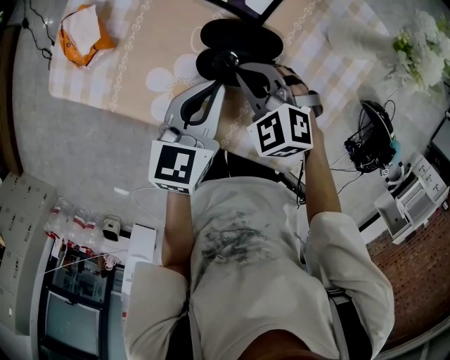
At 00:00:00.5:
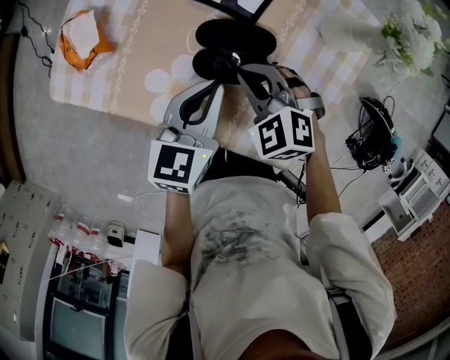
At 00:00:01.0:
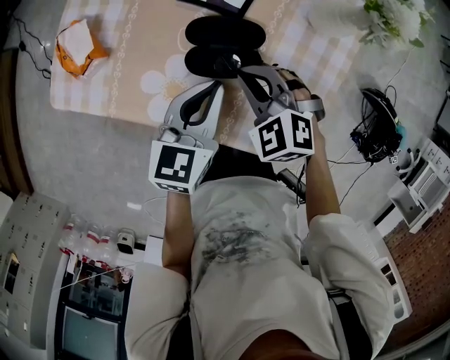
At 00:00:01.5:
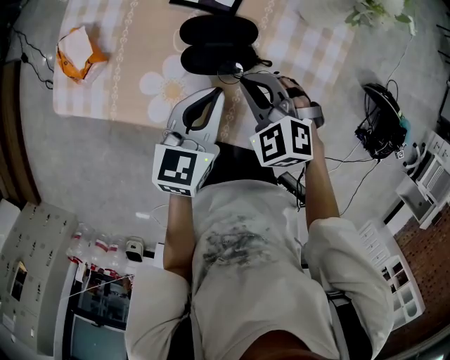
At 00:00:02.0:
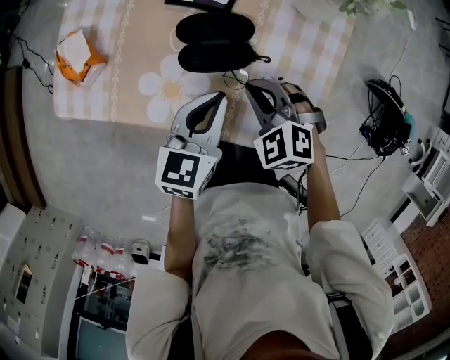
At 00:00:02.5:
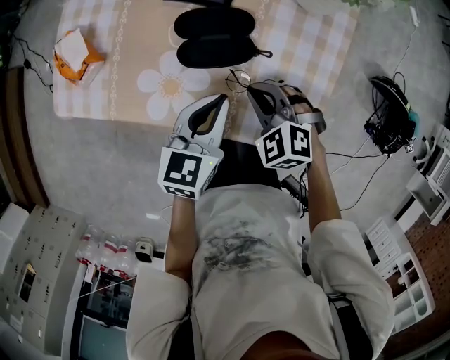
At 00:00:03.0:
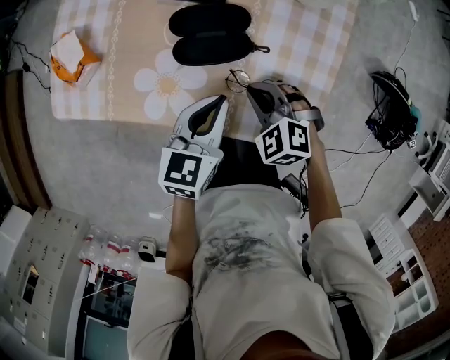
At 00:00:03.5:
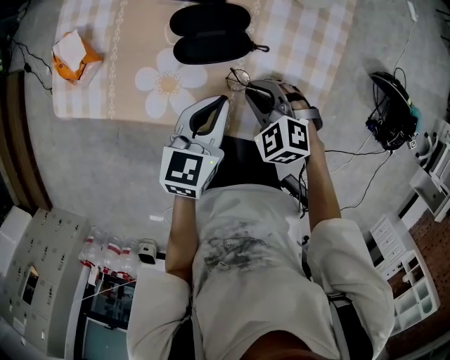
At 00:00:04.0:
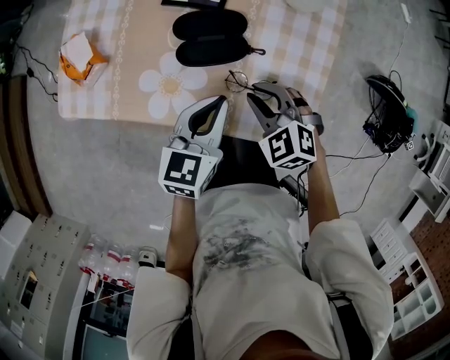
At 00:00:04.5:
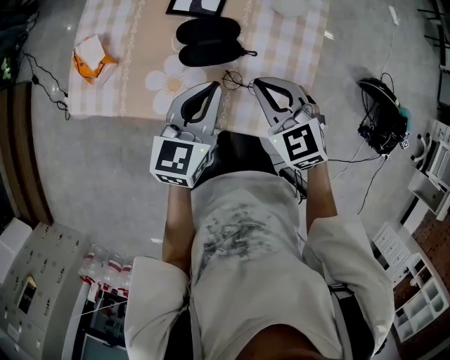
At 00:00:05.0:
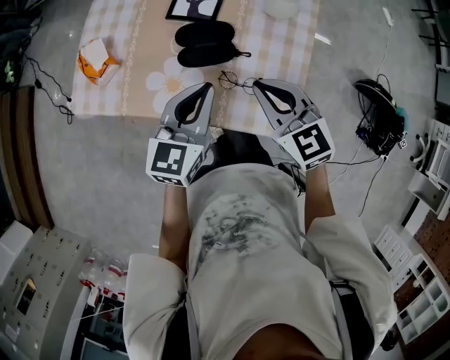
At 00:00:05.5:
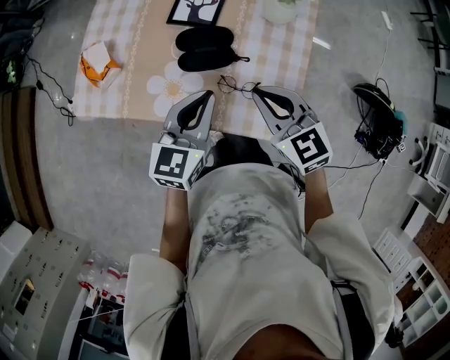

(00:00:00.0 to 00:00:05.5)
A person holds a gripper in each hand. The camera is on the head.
00:00:00.0 - 00:00:02.0: The left gripper goes approximately 5 cm backward, while the right gripper is displaced backward and to the right by about 10 cm.
00:00:02.0 - 00:00:03.5: The right gripper changes place by some 5 cm.
00:00:03.5 - 00:00:05.5: The right gripper shifts roughly 20 cm upward, and swivels some 40 degrees, while the left gripper travels upward by about 10 cm.

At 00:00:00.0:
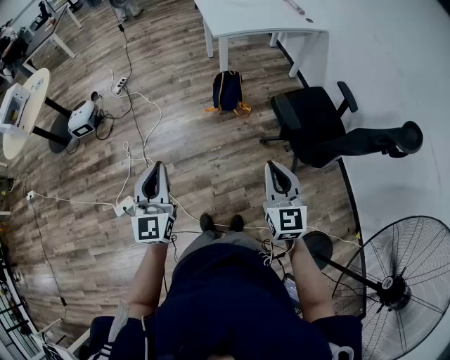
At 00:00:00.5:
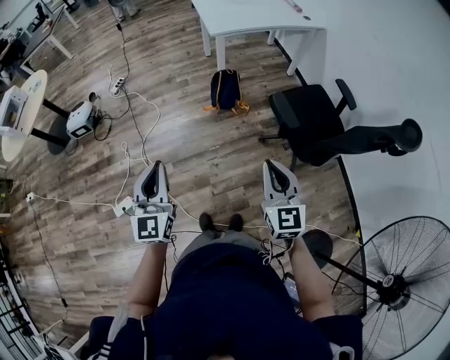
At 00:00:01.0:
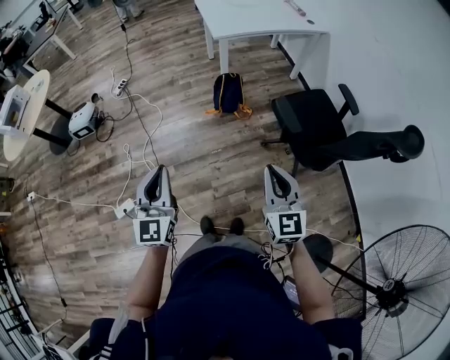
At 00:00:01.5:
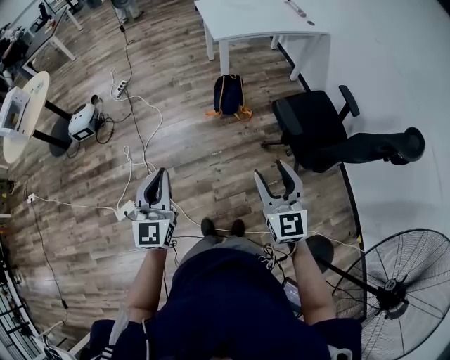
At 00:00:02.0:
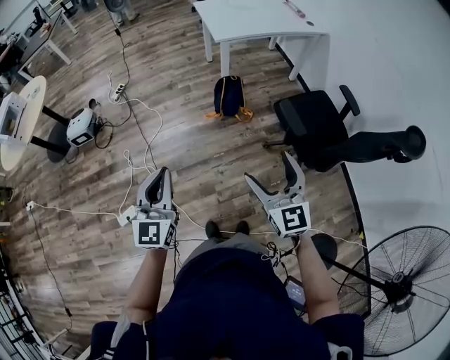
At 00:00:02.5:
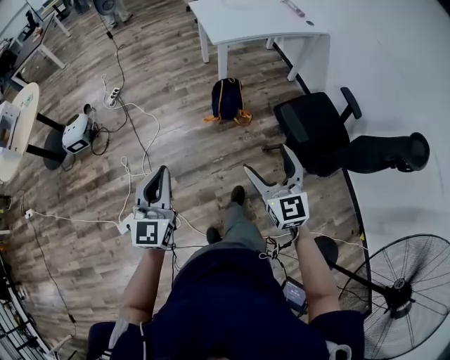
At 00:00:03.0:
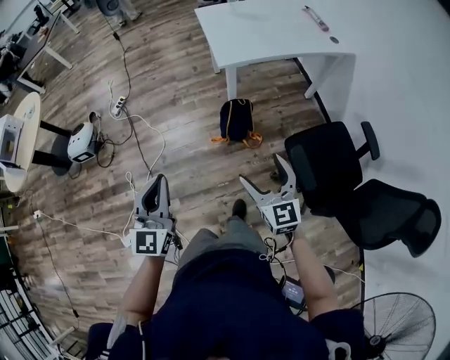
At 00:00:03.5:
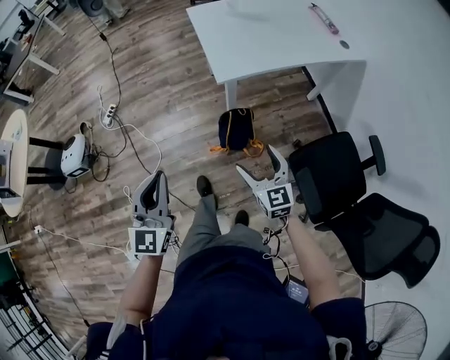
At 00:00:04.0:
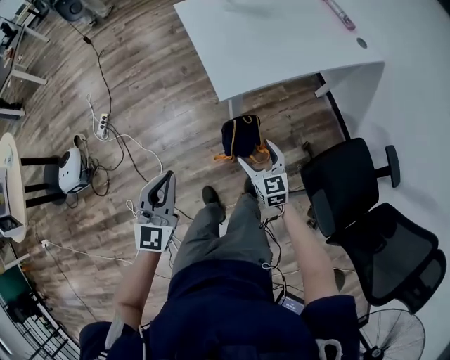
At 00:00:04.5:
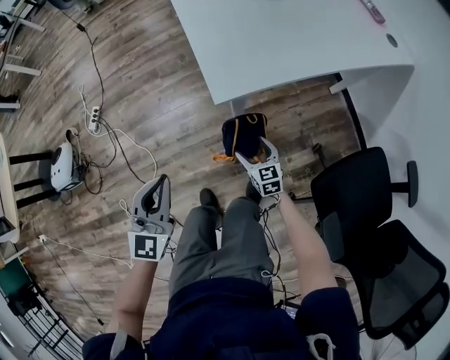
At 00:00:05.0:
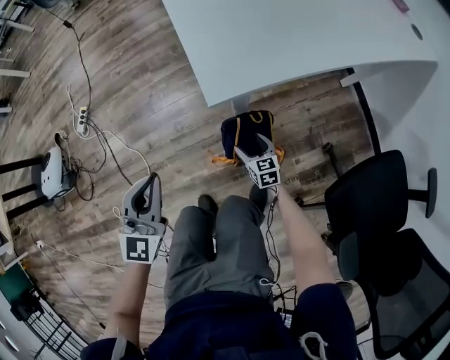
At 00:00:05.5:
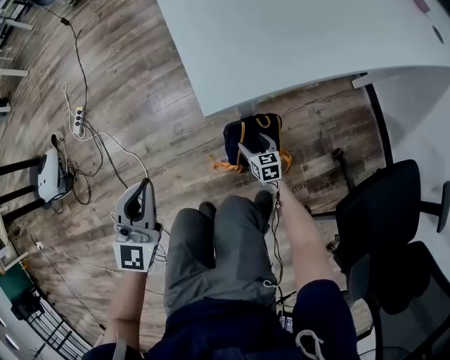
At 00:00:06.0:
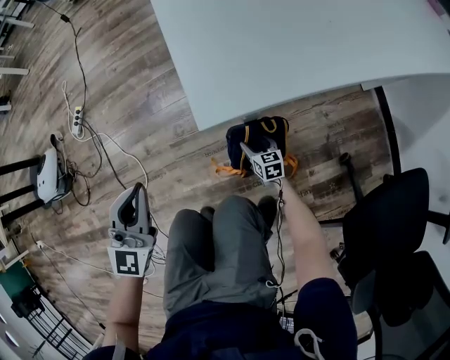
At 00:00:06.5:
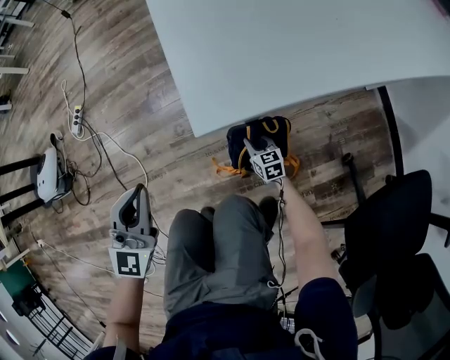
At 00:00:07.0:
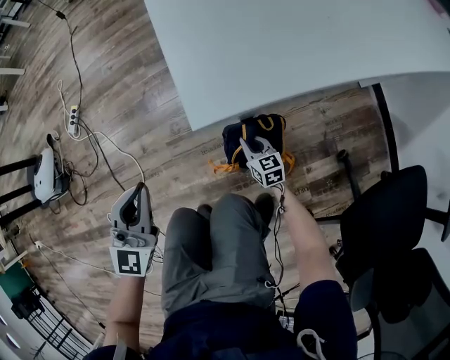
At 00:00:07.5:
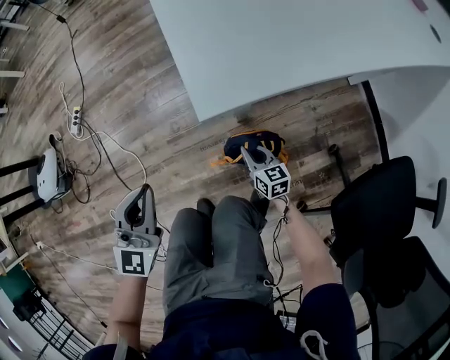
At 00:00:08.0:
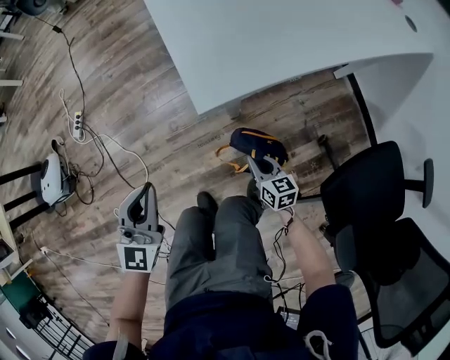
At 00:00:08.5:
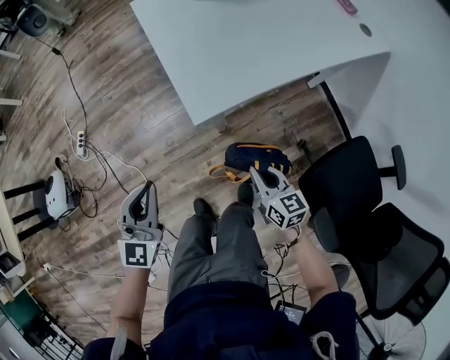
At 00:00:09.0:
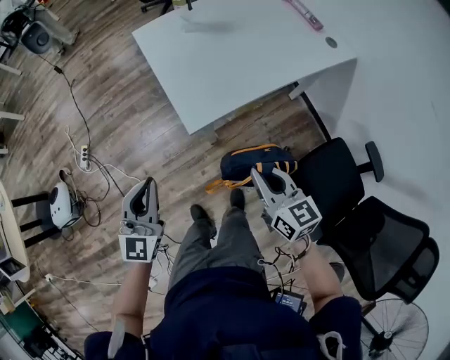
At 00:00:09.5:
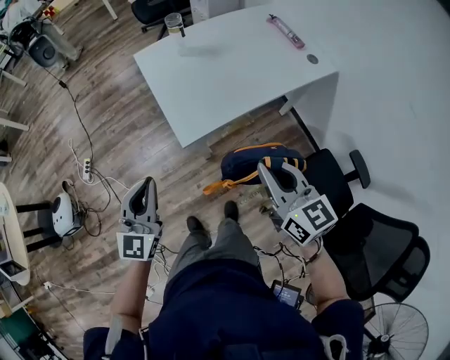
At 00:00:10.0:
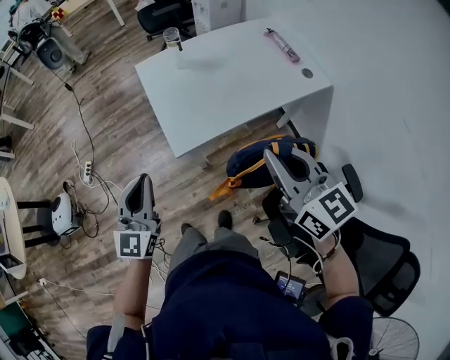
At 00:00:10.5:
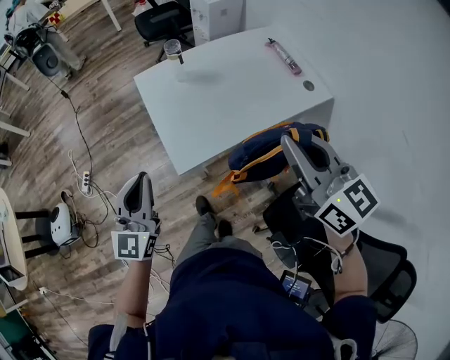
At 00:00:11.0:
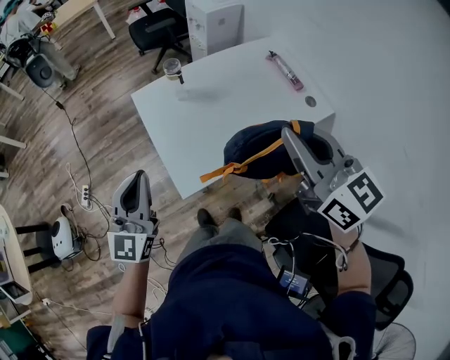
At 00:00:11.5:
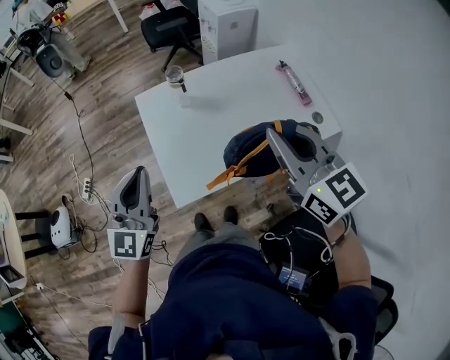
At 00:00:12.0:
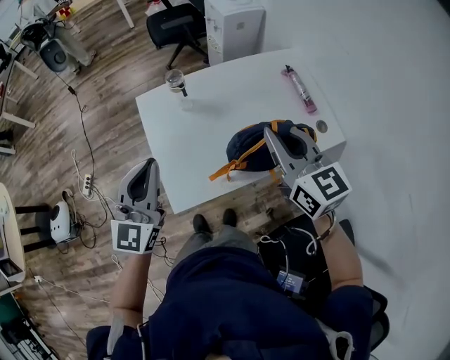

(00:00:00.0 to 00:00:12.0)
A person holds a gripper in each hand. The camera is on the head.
00:00:00.0 - 00:00:02.0: The right gripper goes roughly 5 cm to the left, and opens its fingers.
00:00:02.0 - 00:00:04.0: The two grippers travel together, forward, some 60 cm. The right gripper shifts some 35 cm downward, and swivels about 20 degrees.
00:00:04.0 - 00:00:06.0: The right gripper heads downward, covering approximately 50 cm, and rotates some 20 degrees. The left gripper travels downward and forward by approximately 35 cm.
00:00:06.0 - 00:00:08.0: The left gripper shifts some 10 cm upward, while the right gripper heads upward and backward, covering about 25 cm, and closes its fingers.
00:00:08.0 - 00:00:10.0: The left gripper goes roughly 35 cm upward, while the right gripper is displaced upward by roughly 70 cm, and swivels roughly 30 degrees.
00:00:10.0 - 00:00:12.0: The two grippers go approximately 25 cm forward.

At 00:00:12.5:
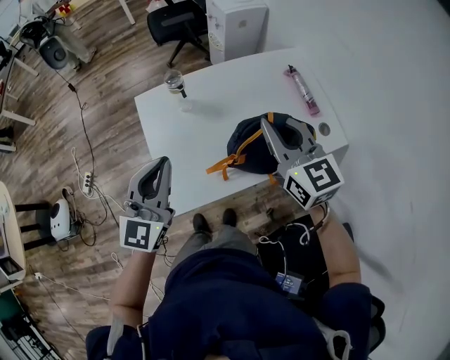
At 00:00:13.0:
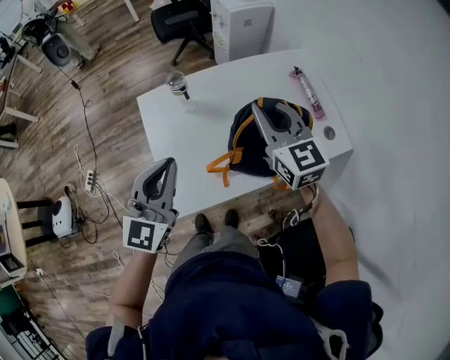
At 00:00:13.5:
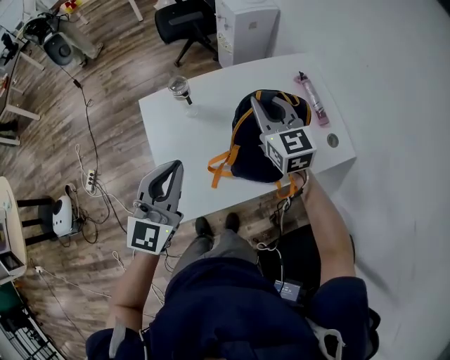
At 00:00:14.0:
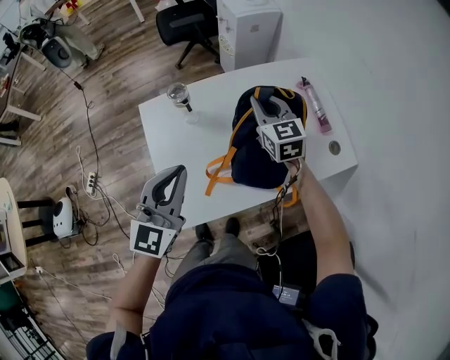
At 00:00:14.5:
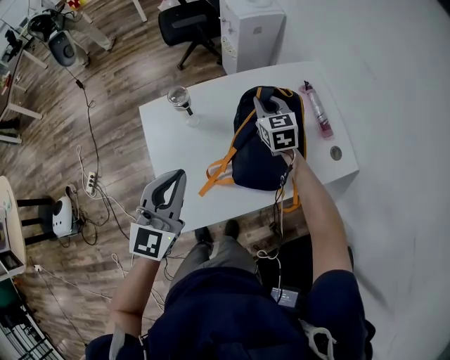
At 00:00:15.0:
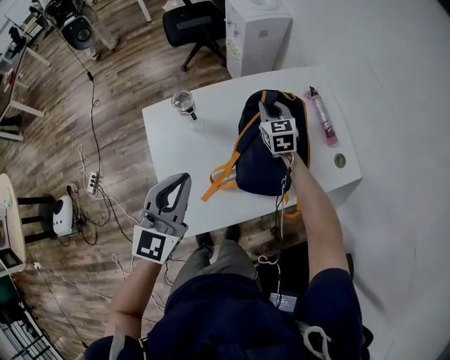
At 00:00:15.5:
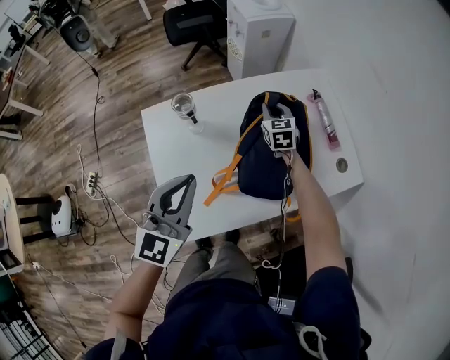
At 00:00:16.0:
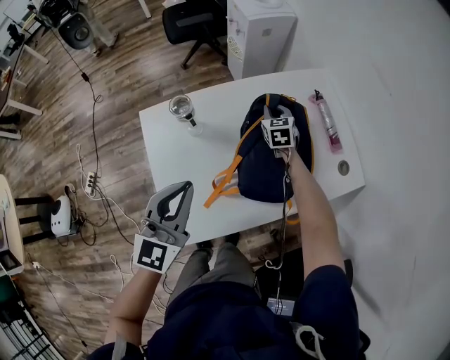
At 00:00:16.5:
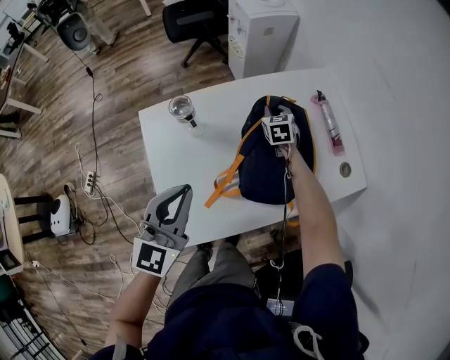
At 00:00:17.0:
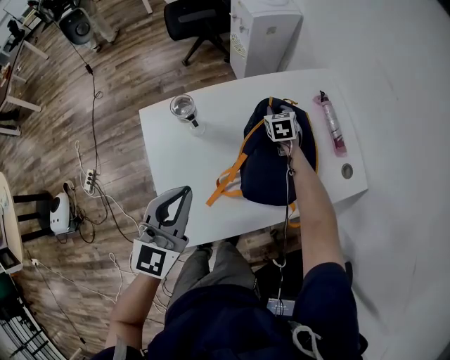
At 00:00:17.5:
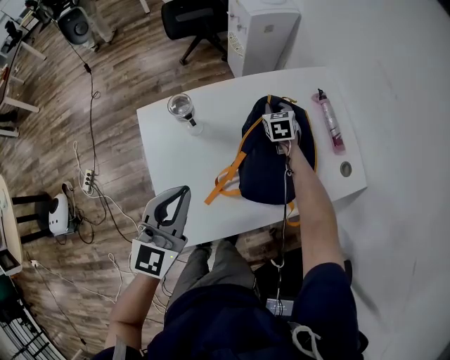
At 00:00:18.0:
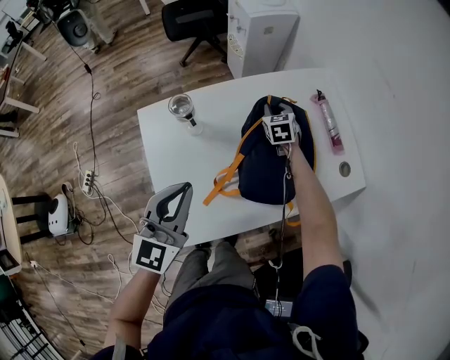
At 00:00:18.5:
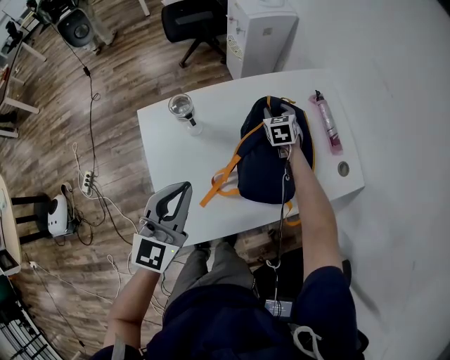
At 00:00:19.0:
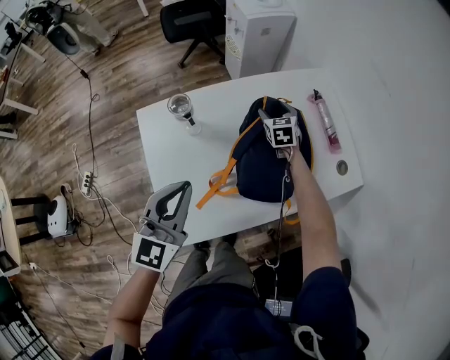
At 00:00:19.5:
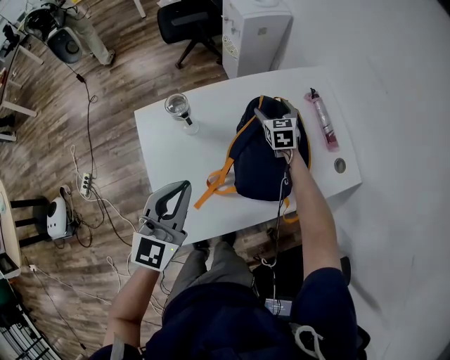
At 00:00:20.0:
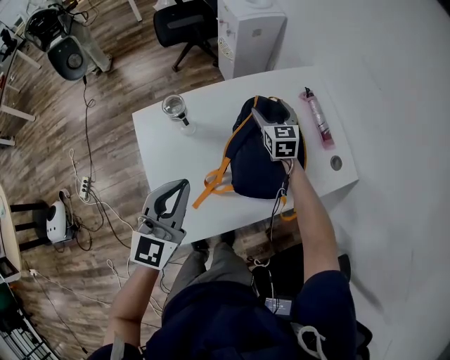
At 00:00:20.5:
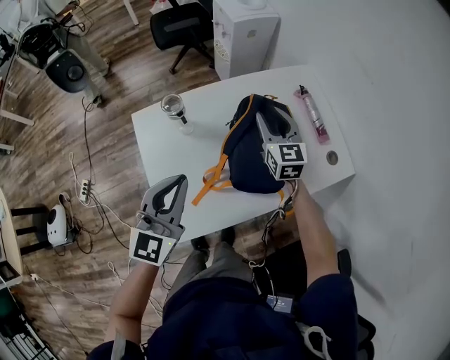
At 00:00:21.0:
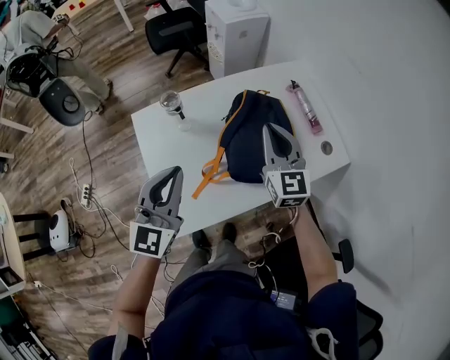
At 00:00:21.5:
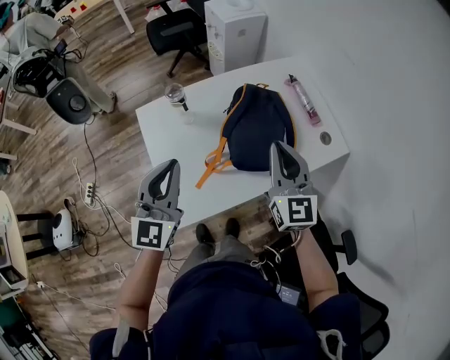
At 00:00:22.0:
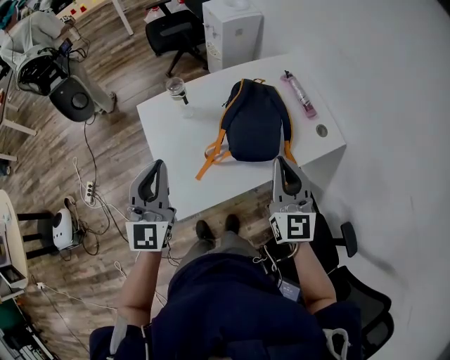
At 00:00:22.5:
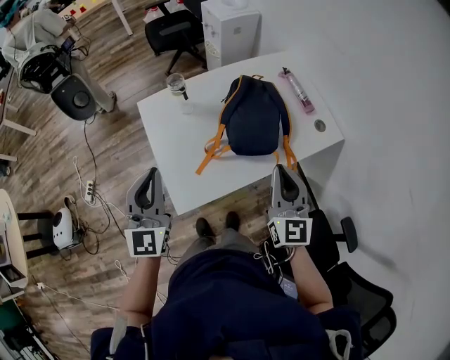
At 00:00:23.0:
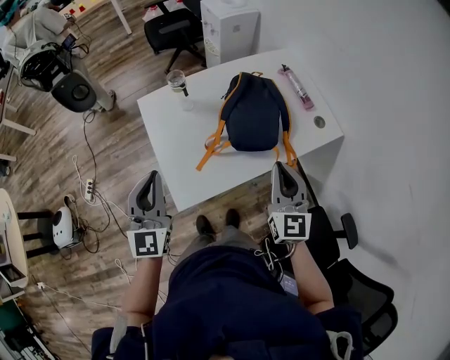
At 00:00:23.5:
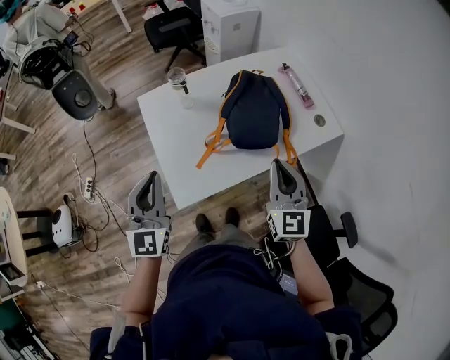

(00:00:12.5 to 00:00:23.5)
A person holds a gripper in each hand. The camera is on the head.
00:00:12.5 - 00:00:14.5: The left gripper travels forward by roughly 5 cm, while the right gripper shifts approximately 30 cm forward and downward.
00:00:14.5 - 00:00:16.0: The right gripper heads downward and forward, covering some 15 cm.
00:00:16.0 - 00:00:18.0: The grippers make only small movements.
00:00:18.0 - 00:00:20.0: The right gripper goes roughly 10 cm upward, and opens up.
00:00:20.0 - 00:00:21.5: The left gripper shifts by roughly 5 cm. Meanwhile the right gripper shifts about 35 cm backward and upward, and closes up.
00:00:21.5 - 00:00:23.5: The right gripper moves backward, about 10 cm; the left gripper is displaced backward and to the left by roughly 10 cm.
